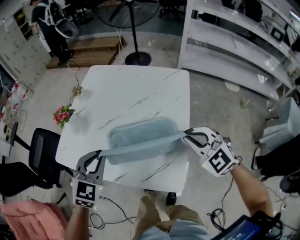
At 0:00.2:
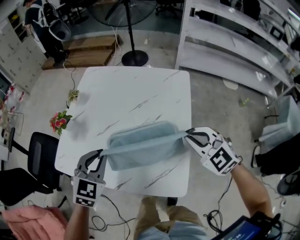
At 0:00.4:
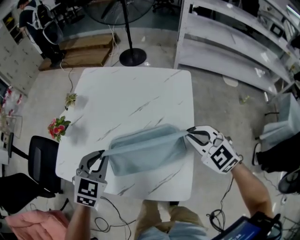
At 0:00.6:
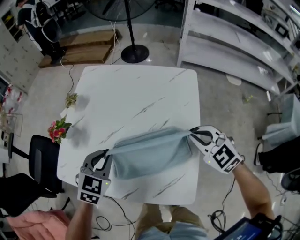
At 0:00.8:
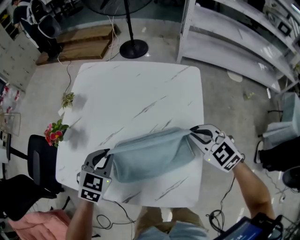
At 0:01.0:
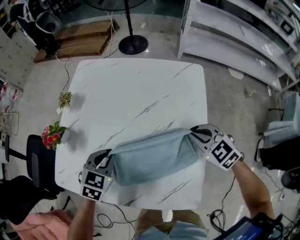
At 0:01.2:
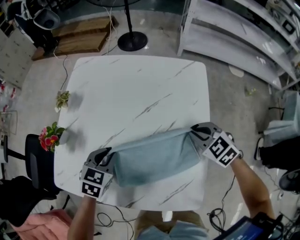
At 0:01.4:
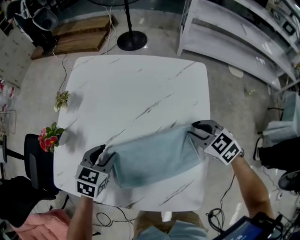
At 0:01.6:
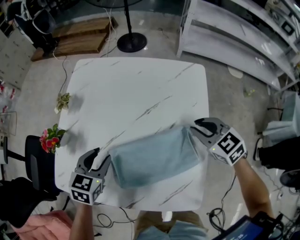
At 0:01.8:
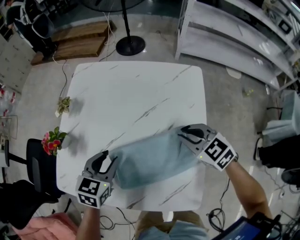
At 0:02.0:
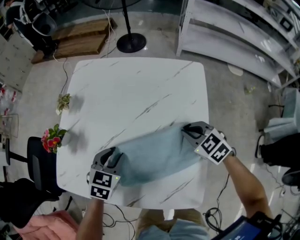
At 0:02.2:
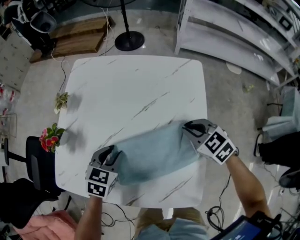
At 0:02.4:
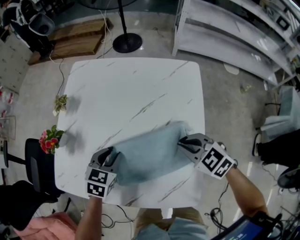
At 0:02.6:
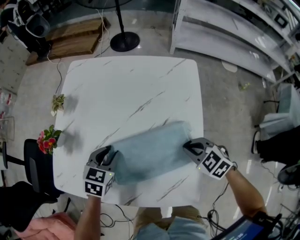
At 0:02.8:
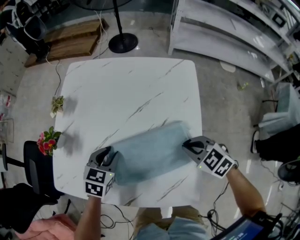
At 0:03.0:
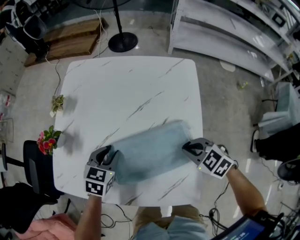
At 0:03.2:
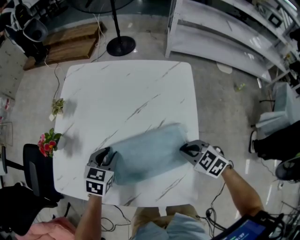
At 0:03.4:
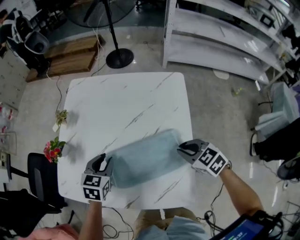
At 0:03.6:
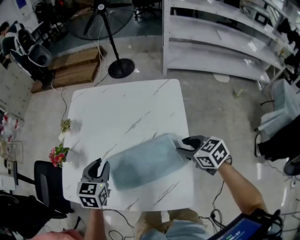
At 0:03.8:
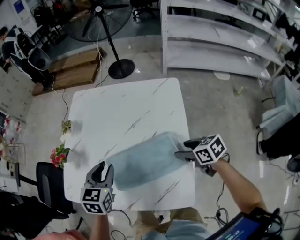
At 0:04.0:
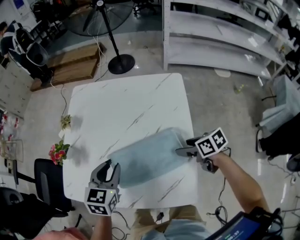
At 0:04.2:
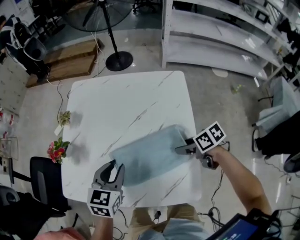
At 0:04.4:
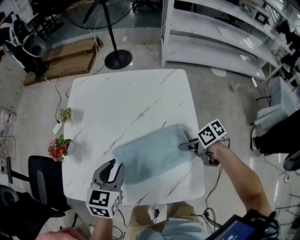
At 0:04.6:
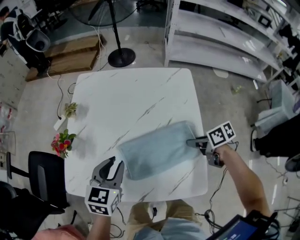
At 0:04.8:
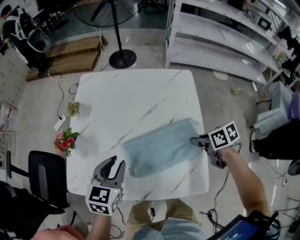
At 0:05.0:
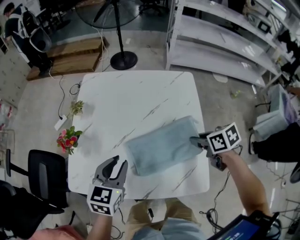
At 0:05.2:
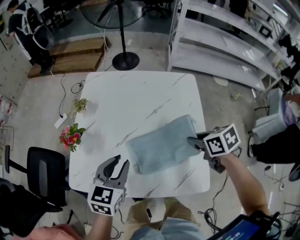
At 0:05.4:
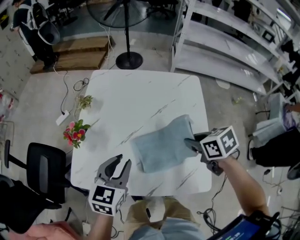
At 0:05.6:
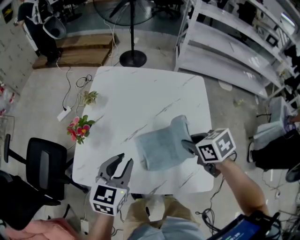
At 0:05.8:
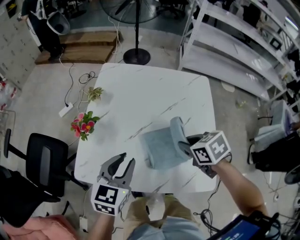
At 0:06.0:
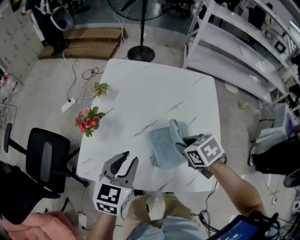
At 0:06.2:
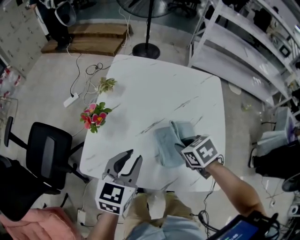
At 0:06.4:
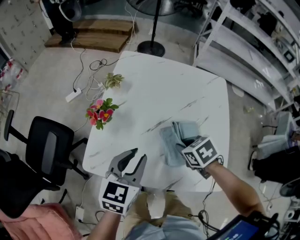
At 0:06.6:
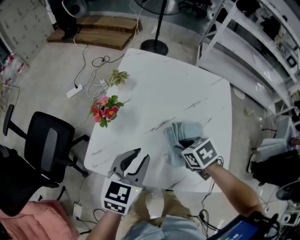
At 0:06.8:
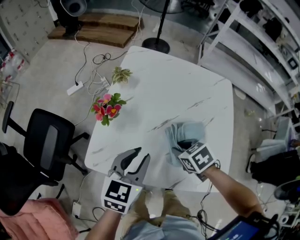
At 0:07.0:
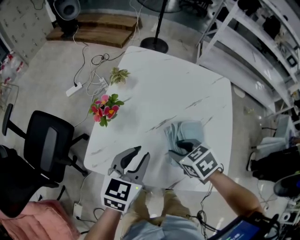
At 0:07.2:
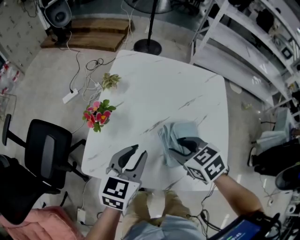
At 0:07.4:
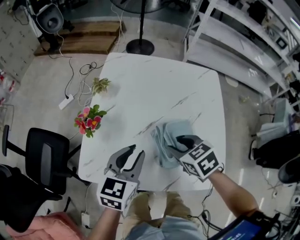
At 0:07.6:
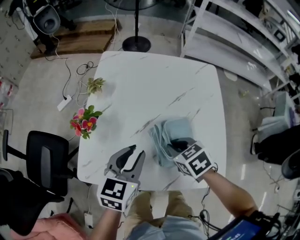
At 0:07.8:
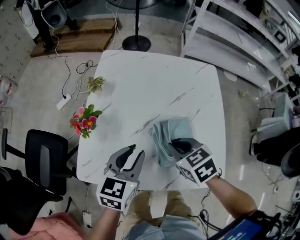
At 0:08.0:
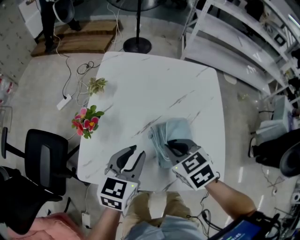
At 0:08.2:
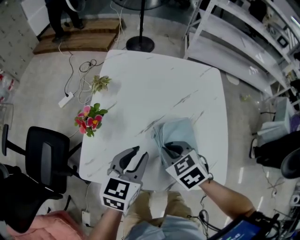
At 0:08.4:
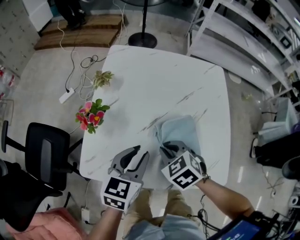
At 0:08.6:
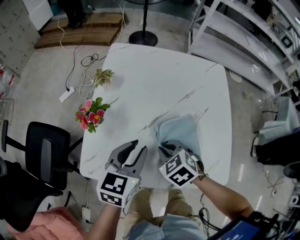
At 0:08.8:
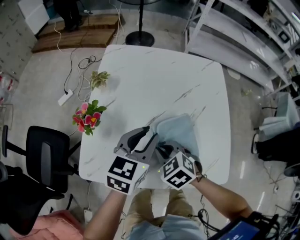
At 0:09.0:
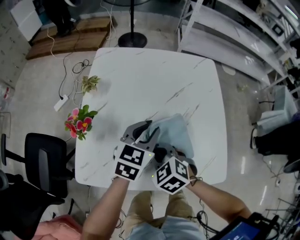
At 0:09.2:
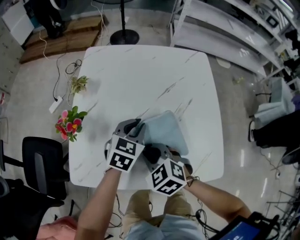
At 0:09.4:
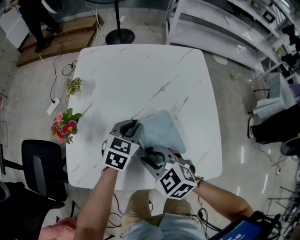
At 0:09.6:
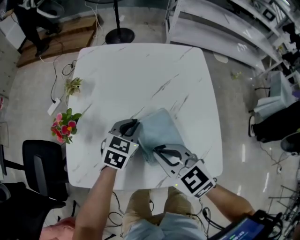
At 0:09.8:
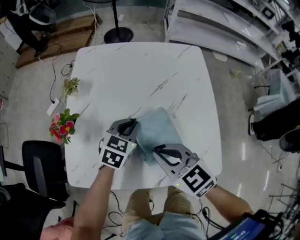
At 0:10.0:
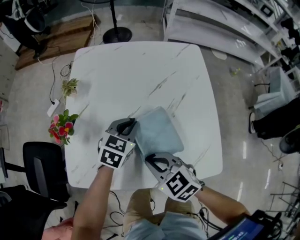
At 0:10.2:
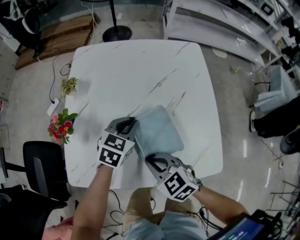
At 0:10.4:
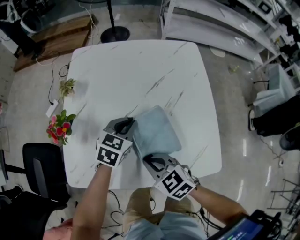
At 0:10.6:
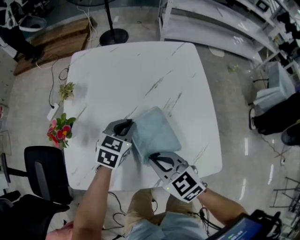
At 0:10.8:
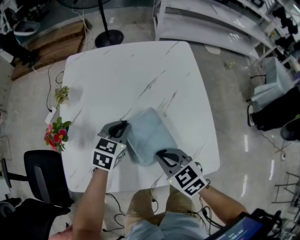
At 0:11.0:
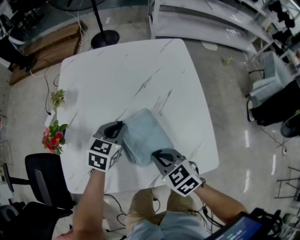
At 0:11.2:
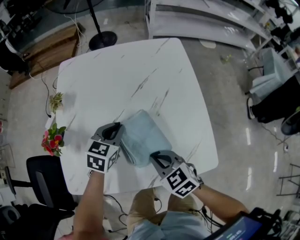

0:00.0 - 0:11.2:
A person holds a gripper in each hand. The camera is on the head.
0:00.0 - 0:01.6: Both grippers travel together forward and downward, approximately 15 cm. The left gripper turns by approximately 30 degrees, and opens; the right gripper swivels some 30 degrees.
0:01.6 - 0:03.2: The left gripper shifts by some 5 cm. Meanwhile the right gripper travels backward and downward by about 10 cm.
0:03.2 - 0:04.8: The right gripper swings up and down, about 5 cm each way, with 2 reversals, rotates around the line of its fingers by roughly 50 degrees, clockwise from behind, and opens and closes again, while the left gripper goes roughly 10 cm upward.
0:04.8 - 0:06.4: The left gripper heads to the left, covering approximately 10 cm, while the right gripper moves to the left, approximately 25 cm, and turns by approximately 40 degrees.
0:06.4 - 0:08.0: The right gripper swings up and down, approximately 10 cm each way, with 2 reversals, and opens and closes again.
0:08.0 - 0:09.6: The right gripper reaches approximately 10 cm downward, then returns; the left gripper shifts roughly 15 cm downward, forward and to the right, and turns by about 20 degrees.
0:09.6 - 0:11.2: The right gripper is displaced downward by about 10 cm.

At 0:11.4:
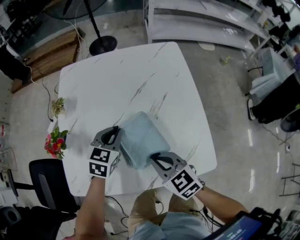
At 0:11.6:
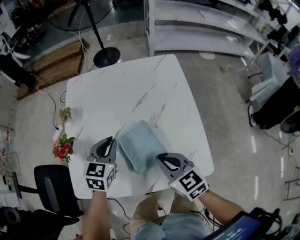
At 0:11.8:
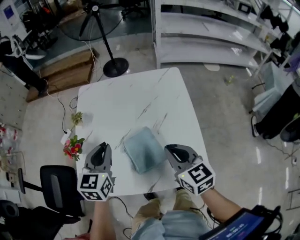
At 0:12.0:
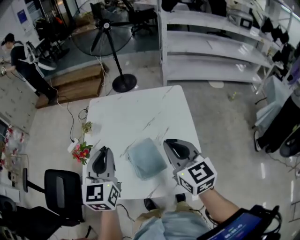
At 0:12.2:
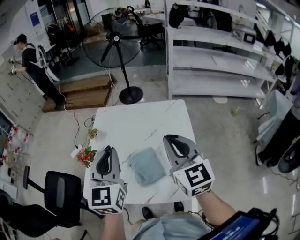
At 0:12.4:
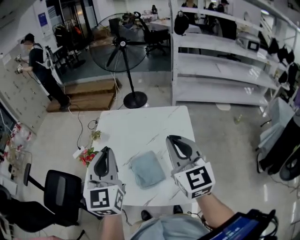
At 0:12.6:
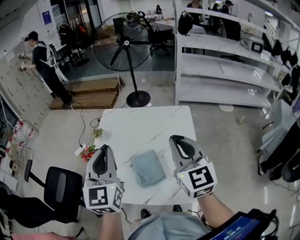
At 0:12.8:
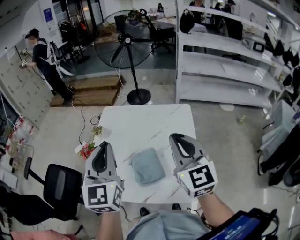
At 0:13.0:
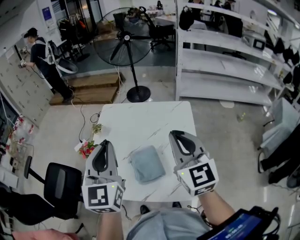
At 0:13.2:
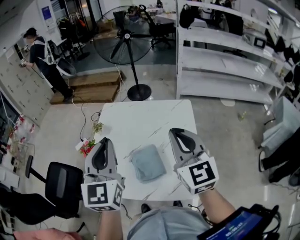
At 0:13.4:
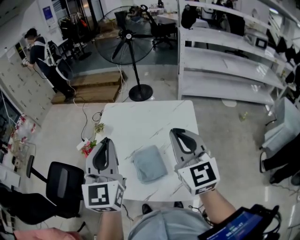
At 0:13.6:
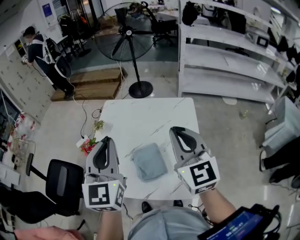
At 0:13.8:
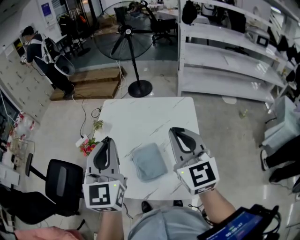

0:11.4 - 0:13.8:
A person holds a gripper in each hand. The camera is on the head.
0:11.4 - 0:12.6: Both grippers travel together upward, roughly 30 cm. The right gripper angles its fingers upward, by roughly 30 degrees. The left gripper tilts its fingers some 40 degrees upward.
0:12.6 - 0:13.8: The grippers stay close to where they were, moving slightly.

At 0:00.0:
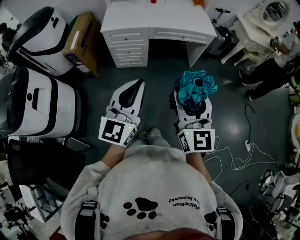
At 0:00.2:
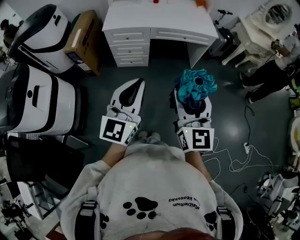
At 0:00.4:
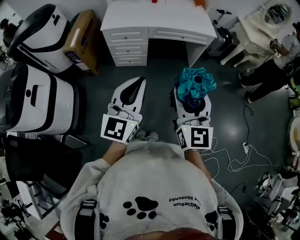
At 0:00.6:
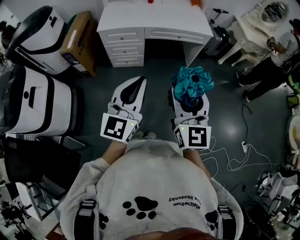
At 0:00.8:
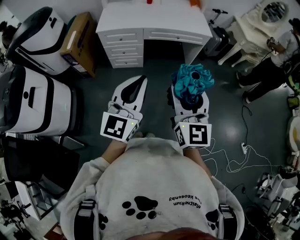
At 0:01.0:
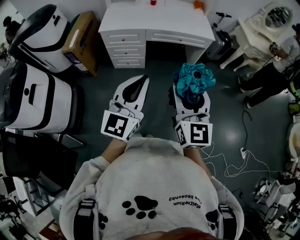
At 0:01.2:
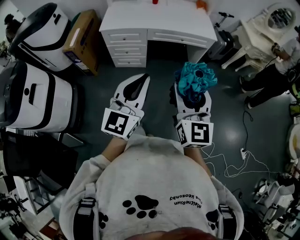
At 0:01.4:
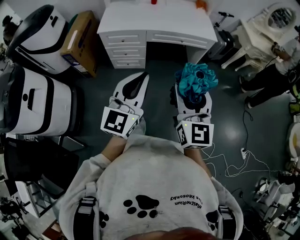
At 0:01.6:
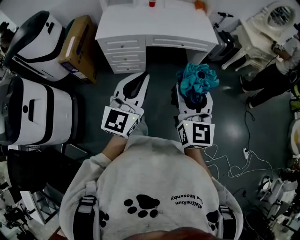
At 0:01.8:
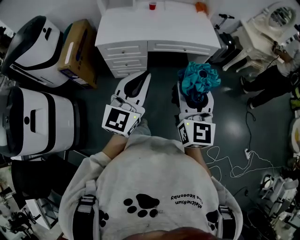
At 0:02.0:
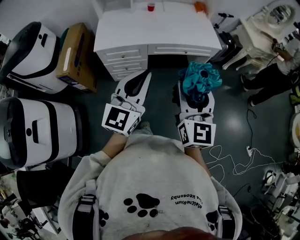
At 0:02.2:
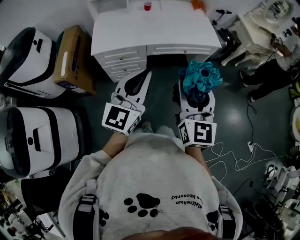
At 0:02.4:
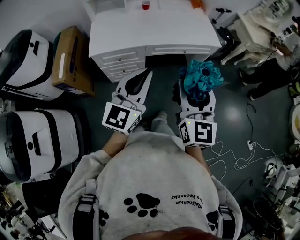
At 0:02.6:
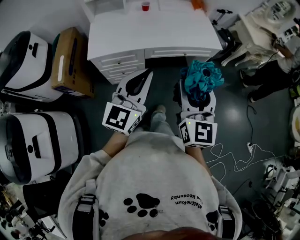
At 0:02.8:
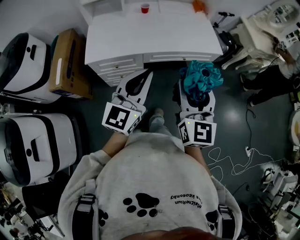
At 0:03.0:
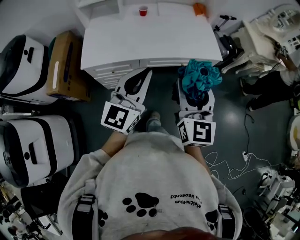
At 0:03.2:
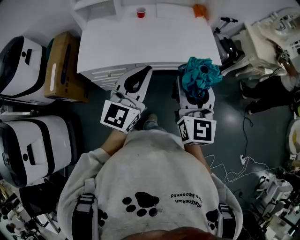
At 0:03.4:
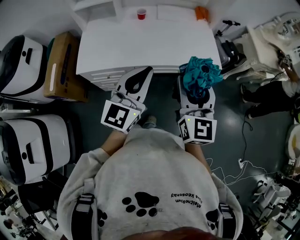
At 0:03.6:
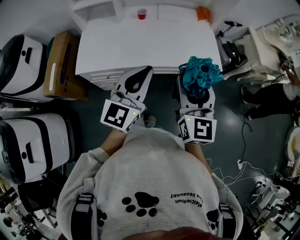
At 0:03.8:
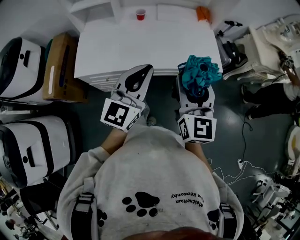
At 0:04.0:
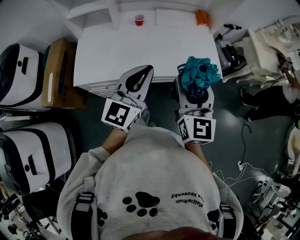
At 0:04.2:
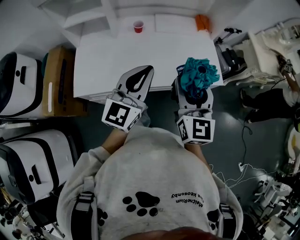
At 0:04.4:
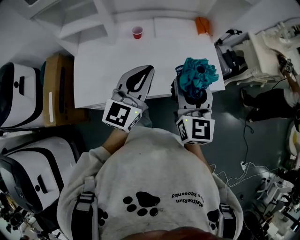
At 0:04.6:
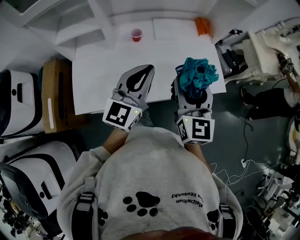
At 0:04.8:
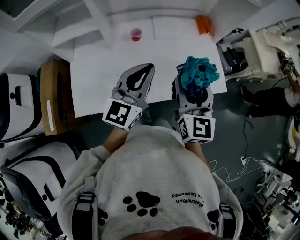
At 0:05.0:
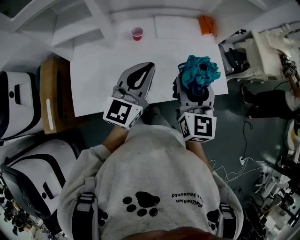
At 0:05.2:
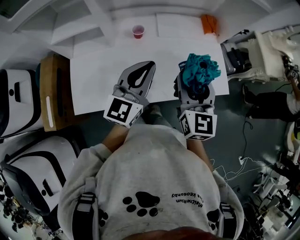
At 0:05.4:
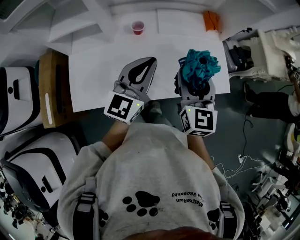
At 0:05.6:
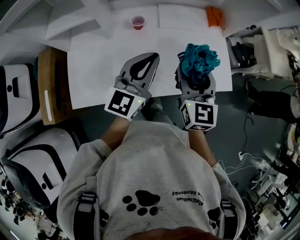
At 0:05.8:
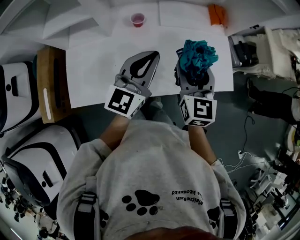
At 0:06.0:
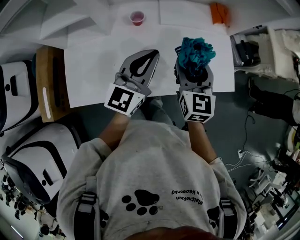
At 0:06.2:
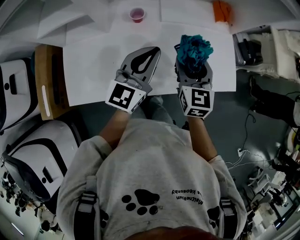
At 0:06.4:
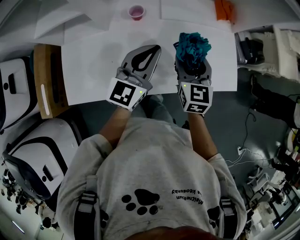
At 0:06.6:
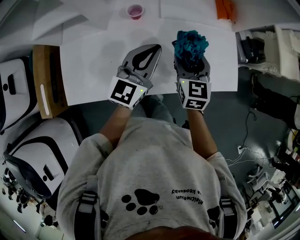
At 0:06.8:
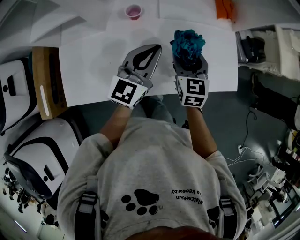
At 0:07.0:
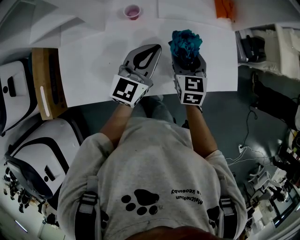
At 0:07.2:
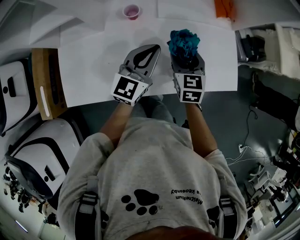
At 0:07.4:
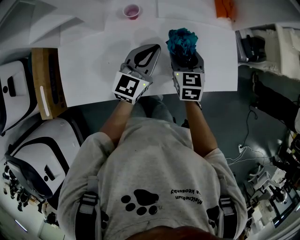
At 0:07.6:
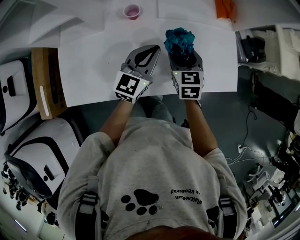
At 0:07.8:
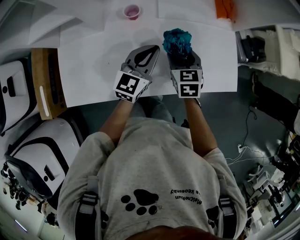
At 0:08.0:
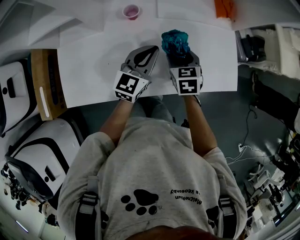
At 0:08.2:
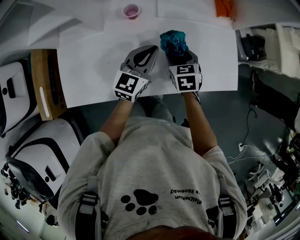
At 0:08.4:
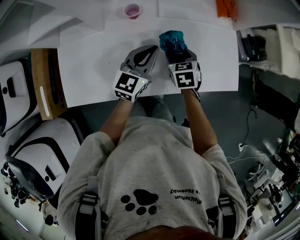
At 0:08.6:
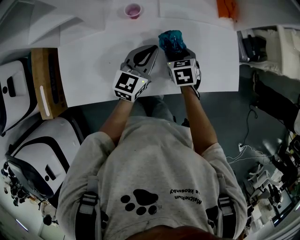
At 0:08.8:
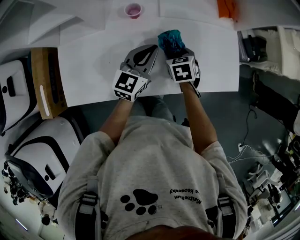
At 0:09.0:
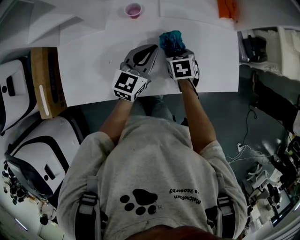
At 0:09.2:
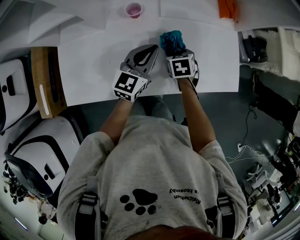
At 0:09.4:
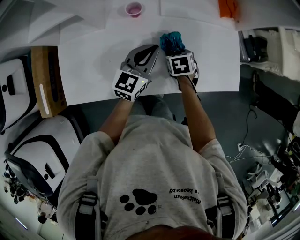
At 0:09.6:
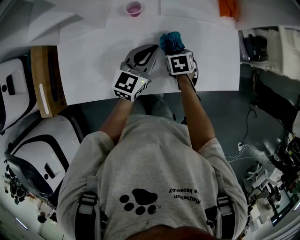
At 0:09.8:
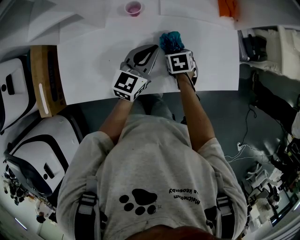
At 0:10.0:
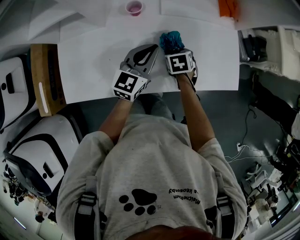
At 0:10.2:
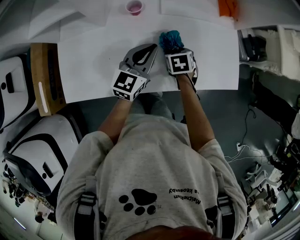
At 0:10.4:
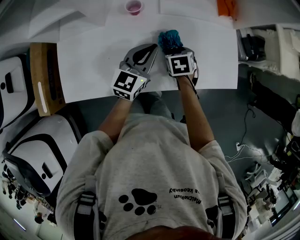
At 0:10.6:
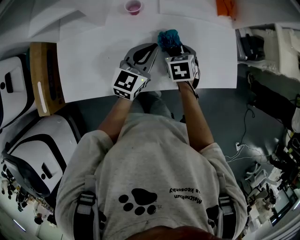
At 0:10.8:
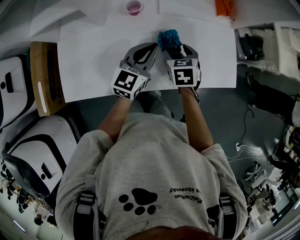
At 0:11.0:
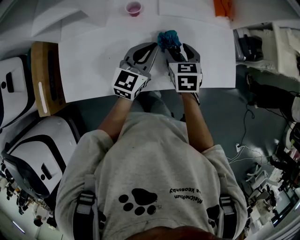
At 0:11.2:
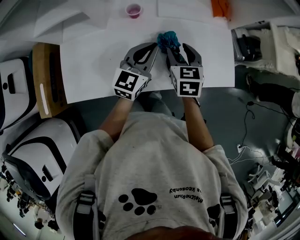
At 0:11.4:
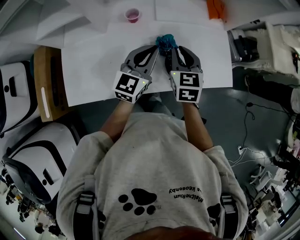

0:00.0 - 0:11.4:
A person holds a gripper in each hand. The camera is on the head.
0:00.0 - 0:01.4: The left gripper is displaced forward and to the right by about 10 cm; the right gripper shifts roughly 10 cm forward.
0:01.4 - 0:02.8: Both grippers travel together forward, about 30 cm.
0:02.8 - 0:04.2: Both grippers move forward, approximately 30 cm.
0:04.2 - 0:05.6: Both grippers move forward, roughly 20 cm.
0:05.6 - 0:07.2: The two grippers go about 15 cm downward and forward.
0:07.2 - 0:08.6: The right gripper moves downward, some 10 cm, and rotates about 20 degrees.
0:08.6 - 0:10.0: The right gripper moves downward, approximately 5 cm.
0:10.0 - 0:11.4: The right gripper is displaced upward by some 20 cm, angles its fingers upward, by roughly 40 degrees, and closes; the left gripper heads upward, covering roughly 5 cm.
